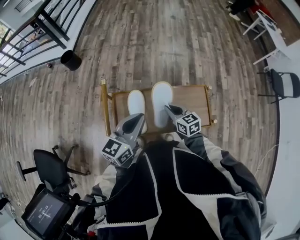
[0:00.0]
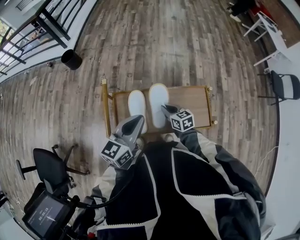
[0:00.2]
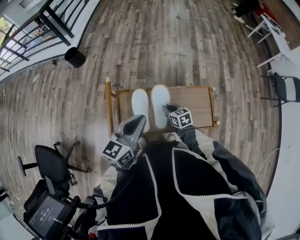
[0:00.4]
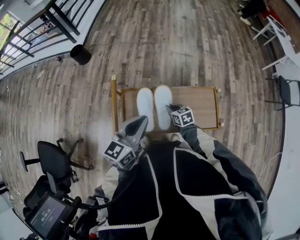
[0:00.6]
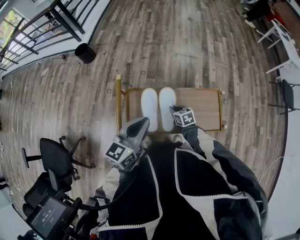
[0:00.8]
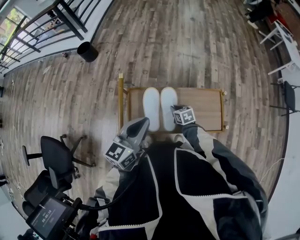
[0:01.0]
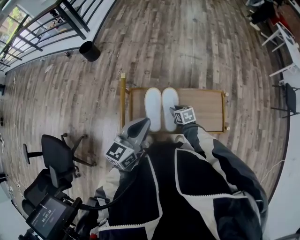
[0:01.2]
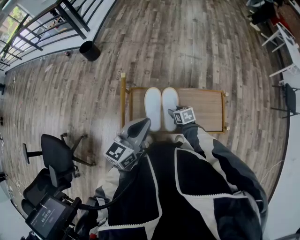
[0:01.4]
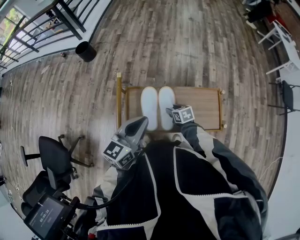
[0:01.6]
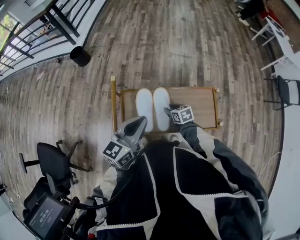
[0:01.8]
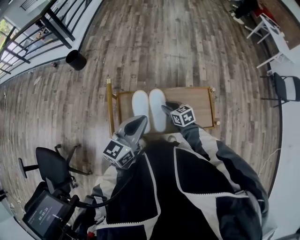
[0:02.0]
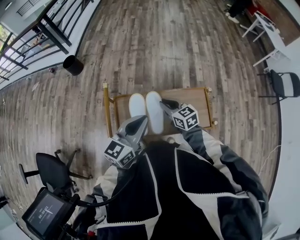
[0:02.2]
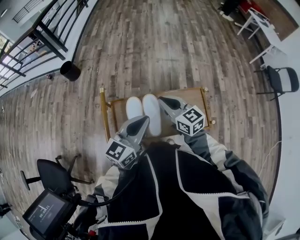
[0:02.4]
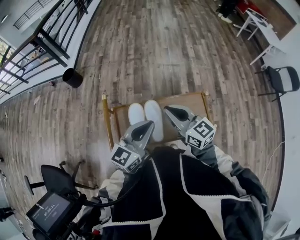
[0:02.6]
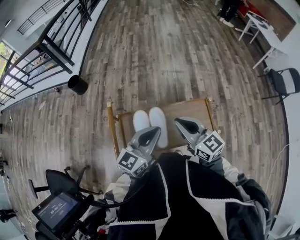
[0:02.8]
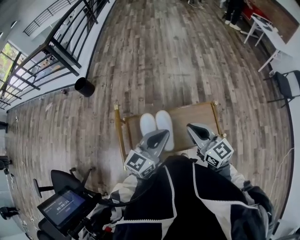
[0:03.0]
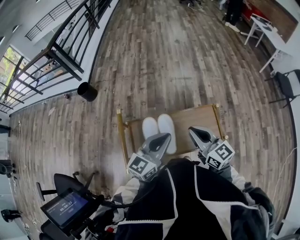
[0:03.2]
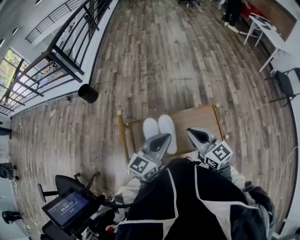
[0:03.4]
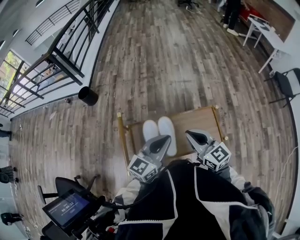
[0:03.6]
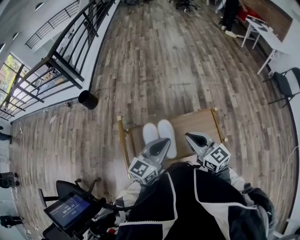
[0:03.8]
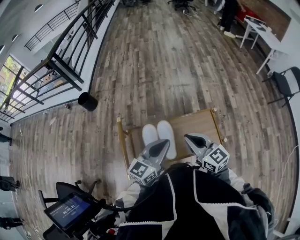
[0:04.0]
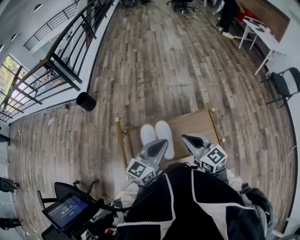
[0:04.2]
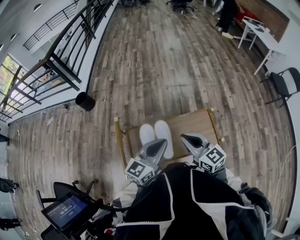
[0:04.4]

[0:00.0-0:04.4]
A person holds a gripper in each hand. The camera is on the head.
0:00.0 to 0:01.4: The left gripper ends up about 5 cm from where it was, while the right gripper heads downward, covering some 15 cm, swivels roughly 30 degrees, and opens up.
0:01.4 to 0:03.0: The right gripper heads upward, covering about 35 cm, angles its fingers upward, by some 50 degrees, and closes; the left gripper moves to the right, roughly 10 cm.
0:03.0 to 0:04.4: The grippers stay close to where they were, moving slightly.

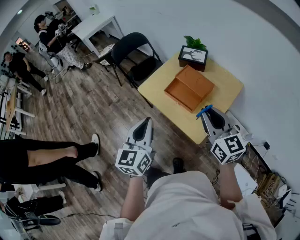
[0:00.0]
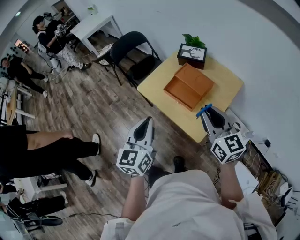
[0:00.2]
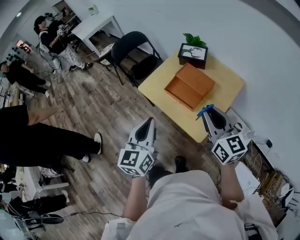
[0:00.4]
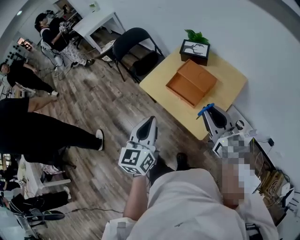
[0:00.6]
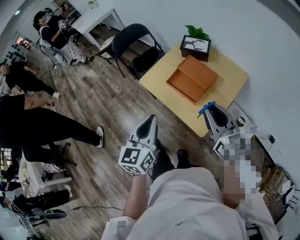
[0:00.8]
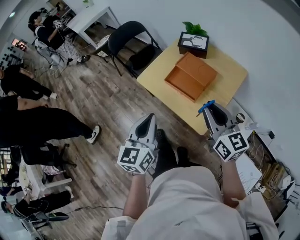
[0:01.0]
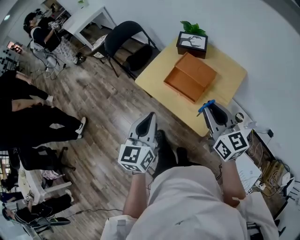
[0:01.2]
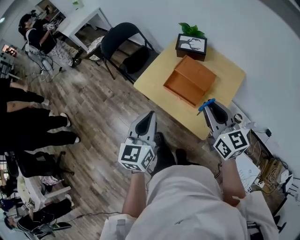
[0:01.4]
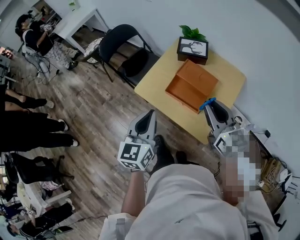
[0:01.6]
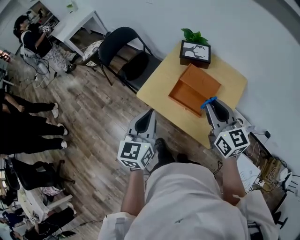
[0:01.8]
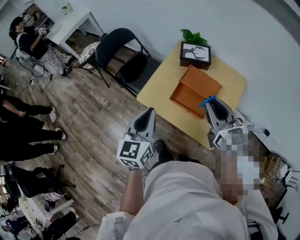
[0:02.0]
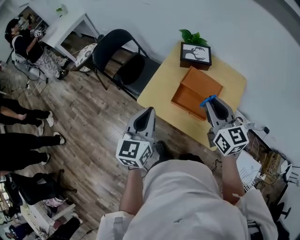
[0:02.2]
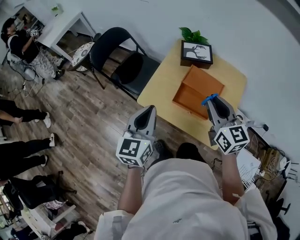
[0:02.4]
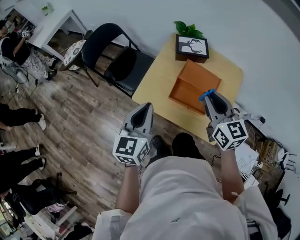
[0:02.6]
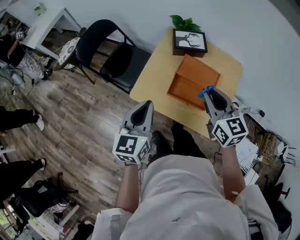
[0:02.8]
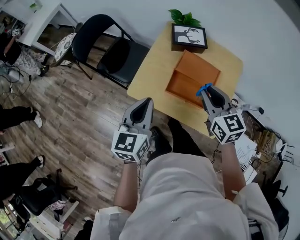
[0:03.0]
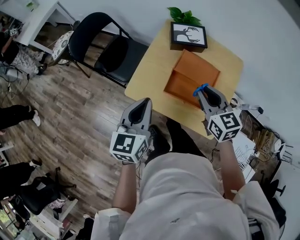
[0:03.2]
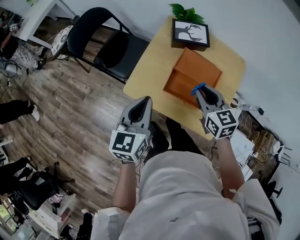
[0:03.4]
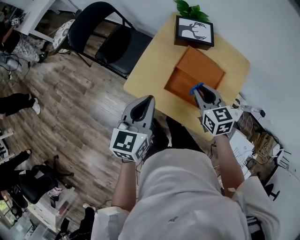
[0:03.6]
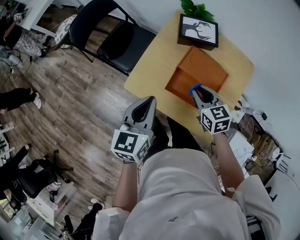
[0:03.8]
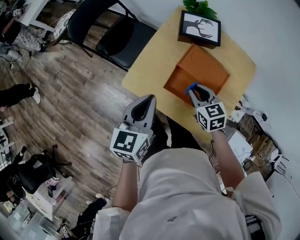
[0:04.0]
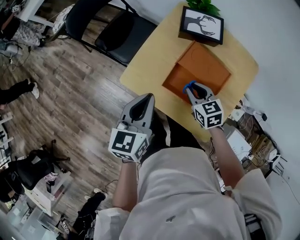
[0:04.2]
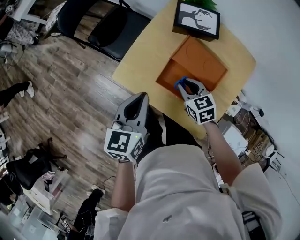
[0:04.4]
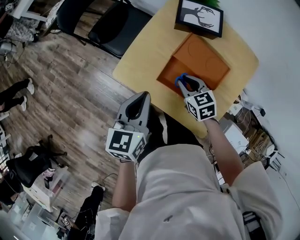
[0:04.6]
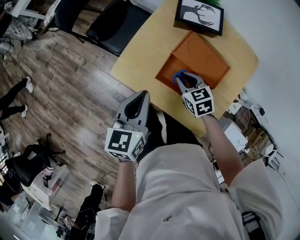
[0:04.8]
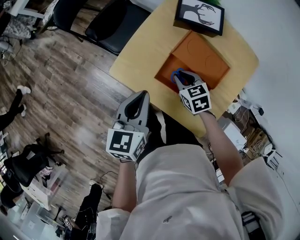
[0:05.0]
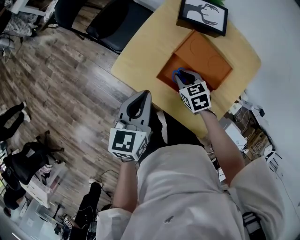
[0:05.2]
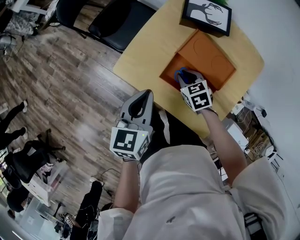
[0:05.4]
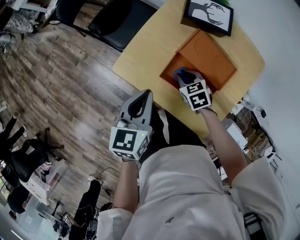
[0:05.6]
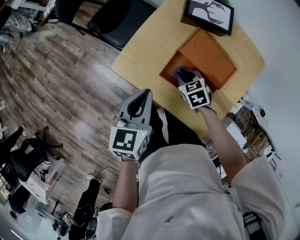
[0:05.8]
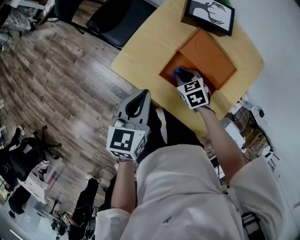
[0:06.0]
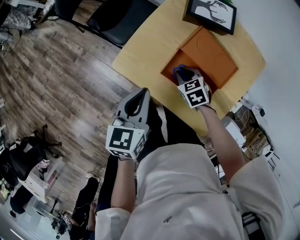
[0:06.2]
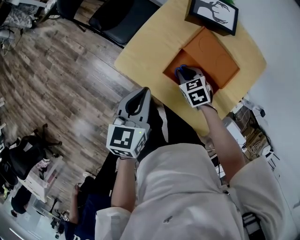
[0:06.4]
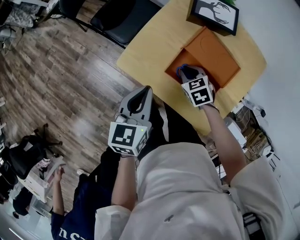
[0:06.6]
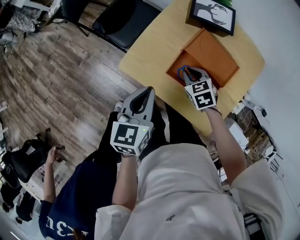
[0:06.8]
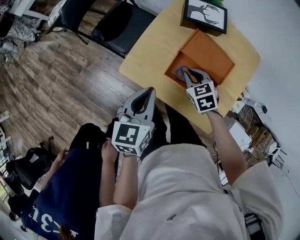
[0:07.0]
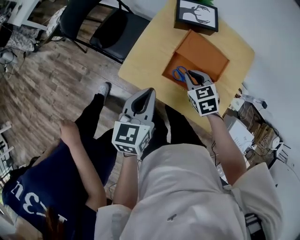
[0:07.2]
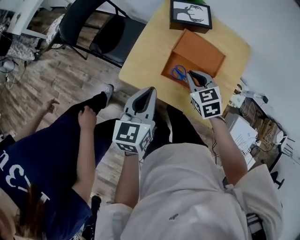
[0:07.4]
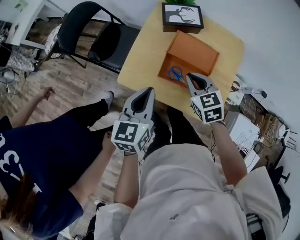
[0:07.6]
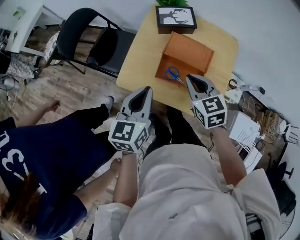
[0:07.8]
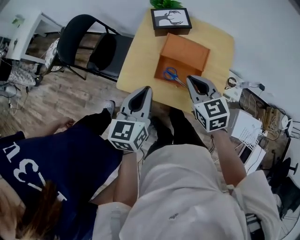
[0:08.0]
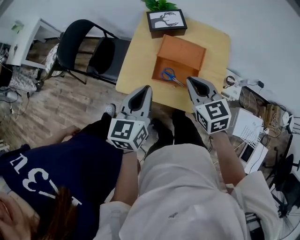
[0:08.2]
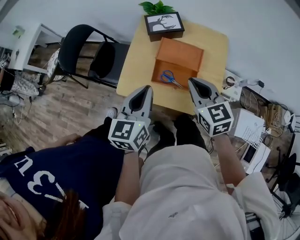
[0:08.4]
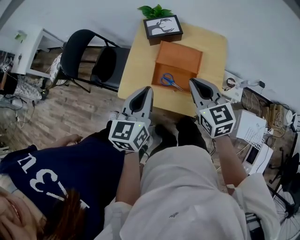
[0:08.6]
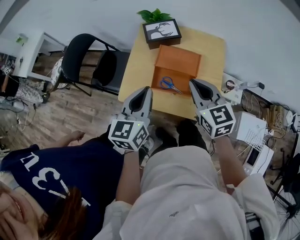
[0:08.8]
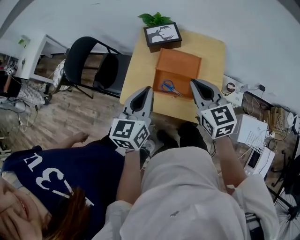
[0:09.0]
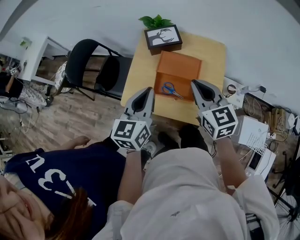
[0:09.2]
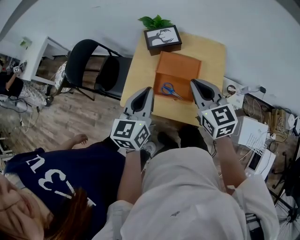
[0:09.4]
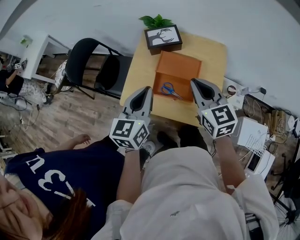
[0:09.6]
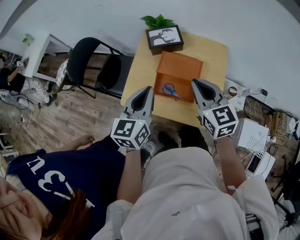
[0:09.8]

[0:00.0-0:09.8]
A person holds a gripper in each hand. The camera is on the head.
0:00.0 to 0:01.4: The two grippers go approximately 5 cm forward.
0:01.4 to 0:02.8: The two grippers go some 20 cm forward and to the left.
0:02.8 to 0:04.2: The right gripper is displaced downward by roughly 25 cm, and rotates approximately 30 degrees. Meanwhile the left gripper is displaced downward, forward and to the right by about 10 cm.
0:04.2 to 0:05.6: The left gripper is displaced downward by approximately 5 cm. Meanwhile the right gripper heads downward, covering about 10 cm.
0:05.6 to 0:07.0: The right gripper moves upward, roughly 5 cm.
0:07.0 to 0:08.4: The left gripper shifts roughly 10 cm upward and to the right; the right gripper shifts roughly 25 cm upward and backward, and turns by roughly 30 degrees.
0:08.4 to 0:09.8: The left gripper moves some 5 cm. Meanwhile the right gripper shifts by about 5 cm.

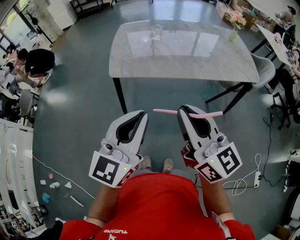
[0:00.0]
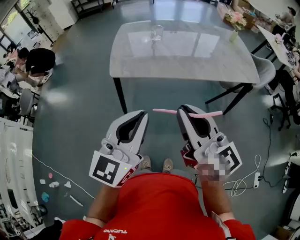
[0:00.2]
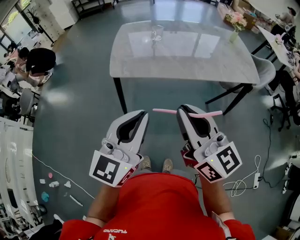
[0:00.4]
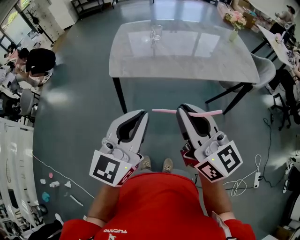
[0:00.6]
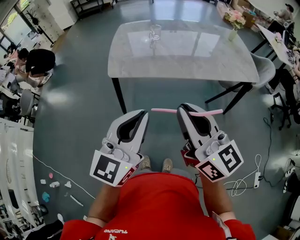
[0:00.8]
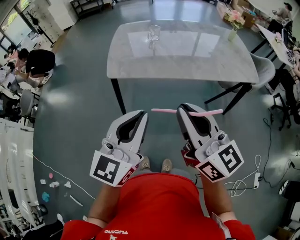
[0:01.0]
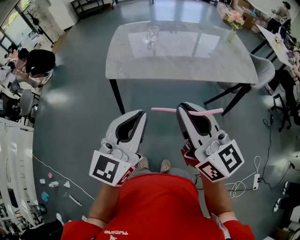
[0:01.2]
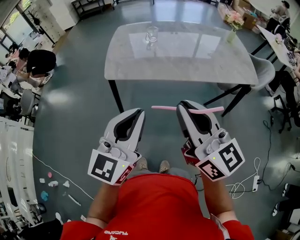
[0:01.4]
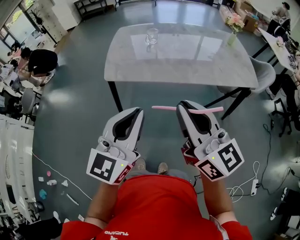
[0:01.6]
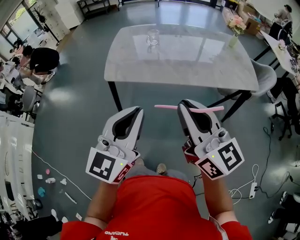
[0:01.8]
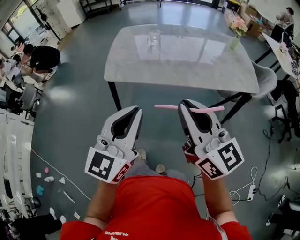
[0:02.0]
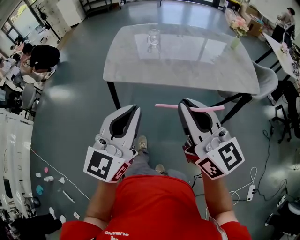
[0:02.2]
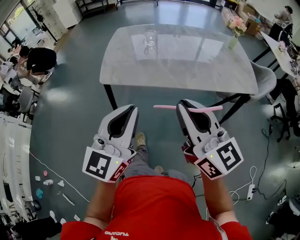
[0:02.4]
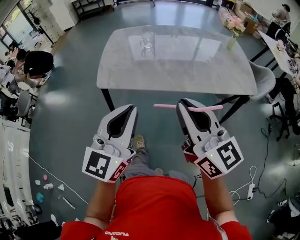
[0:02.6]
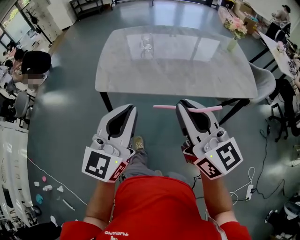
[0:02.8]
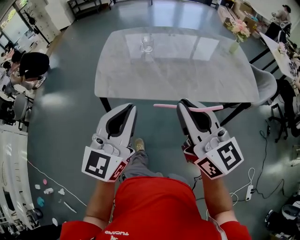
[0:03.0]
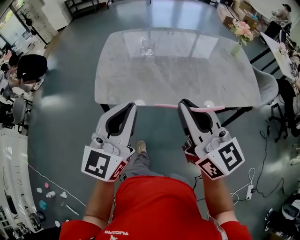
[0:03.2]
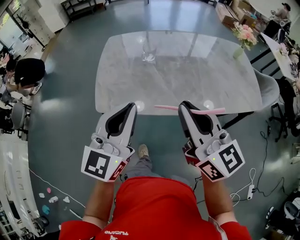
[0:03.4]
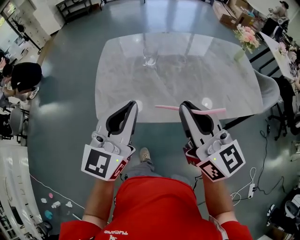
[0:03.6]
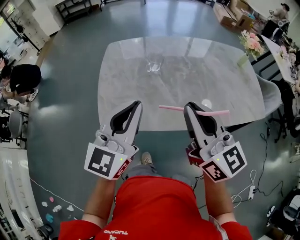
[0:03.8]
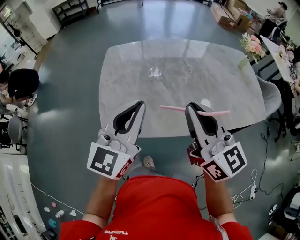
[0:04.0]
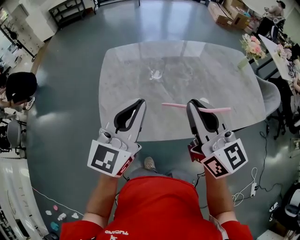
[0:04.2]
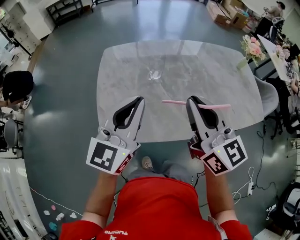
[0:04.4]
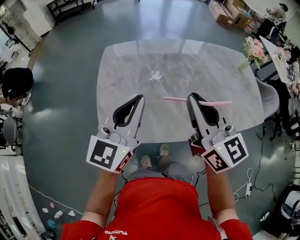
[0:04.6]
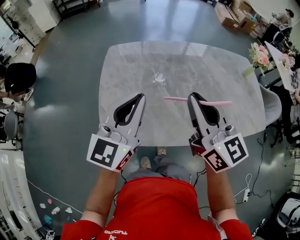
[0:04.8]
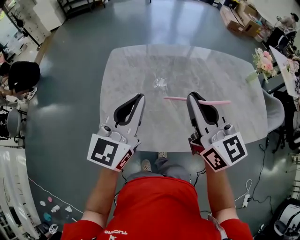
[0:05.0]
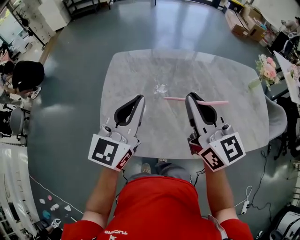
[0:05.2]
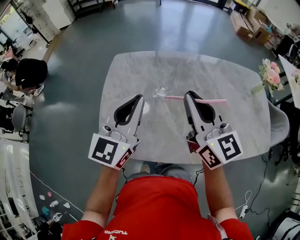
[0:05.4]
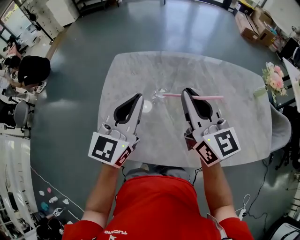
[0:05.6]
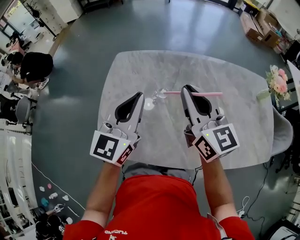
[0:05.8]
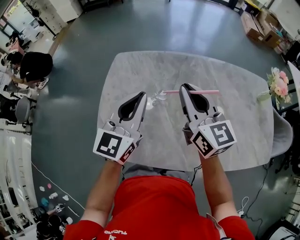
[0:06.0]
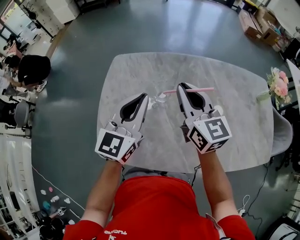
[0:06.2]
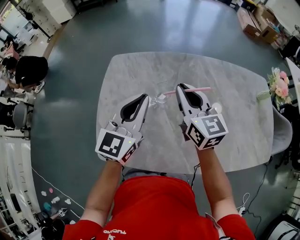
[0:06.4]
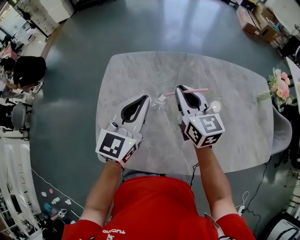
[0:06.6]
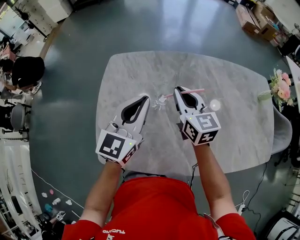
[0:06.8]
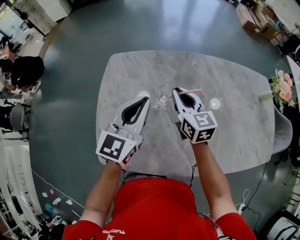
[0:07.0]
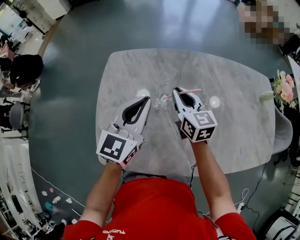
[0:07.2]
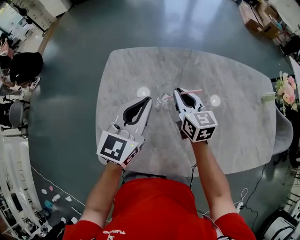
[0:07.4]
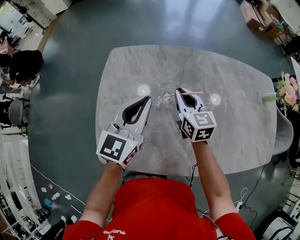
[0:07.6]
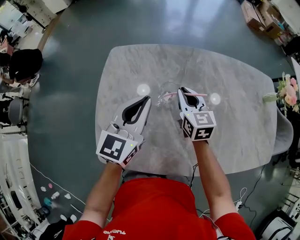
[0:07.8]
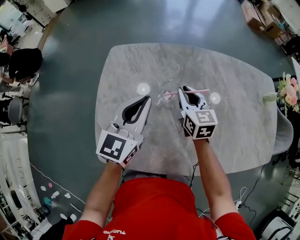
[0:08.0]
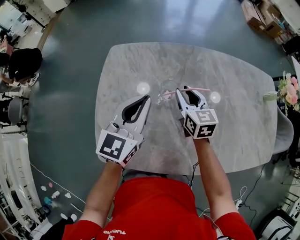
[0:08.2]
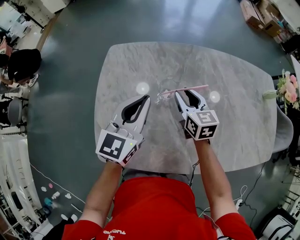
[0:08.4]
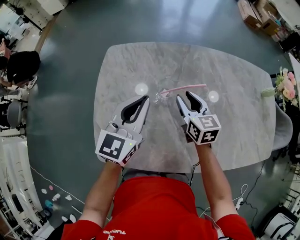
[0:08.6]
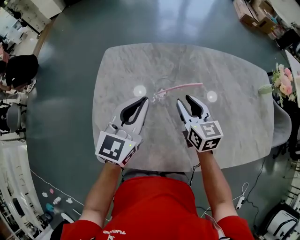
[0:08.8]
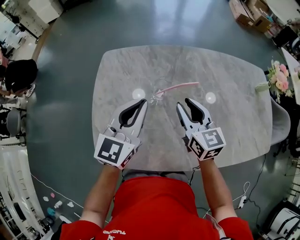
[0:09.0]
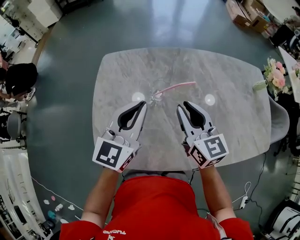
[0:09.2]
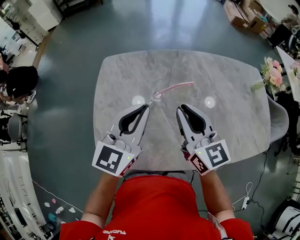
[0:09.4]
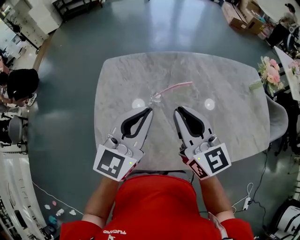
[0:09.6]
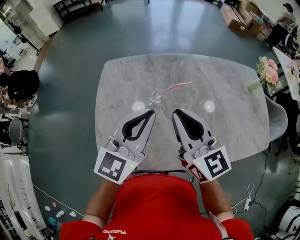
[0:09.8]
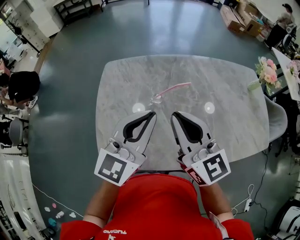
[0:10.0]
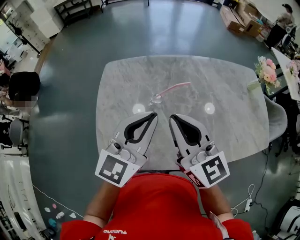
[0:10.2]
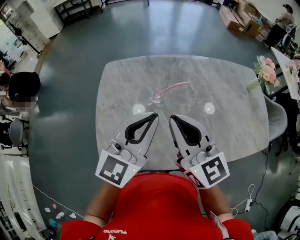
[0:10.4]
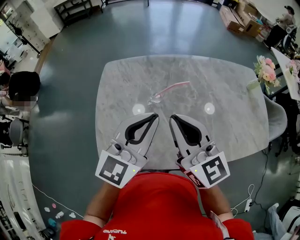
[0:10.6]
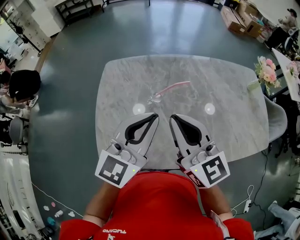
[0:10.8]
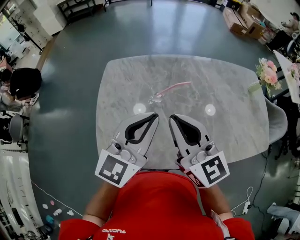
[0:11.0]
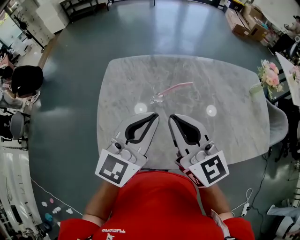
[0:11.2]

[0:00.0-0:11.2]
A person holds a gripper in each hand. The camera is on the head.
0:00.0 to 0:01.6: The grippers both shift to the right by about 5 cm.
0:01.6 to 0:03.2: Both grippers move forward, about 20 cm.
0:03.2 to 0:04.8: Both grippers move forward, about 25 cm.
0:04.8 to 0:06.4: The left gripper shifts some 15 cm forward, while the right gripper shifts some 20 cm forward and downward.
0:06.4 to 0:08.0: The left gripper travels downward by approximately 5 cm, while the right gripper goes roughly 15 cm downward.
0:08.0 to 0:09.6: The left gripper is displaced upward and backward by about 10 cm. Meanwhile the right gripper heads upward and backward, covering roughly 25 cm, swivels about 20 degrees, and opens, then closes once more.
0:09.6 to 0:11.2: The right gripper ends up some 5 cm from where it was.
